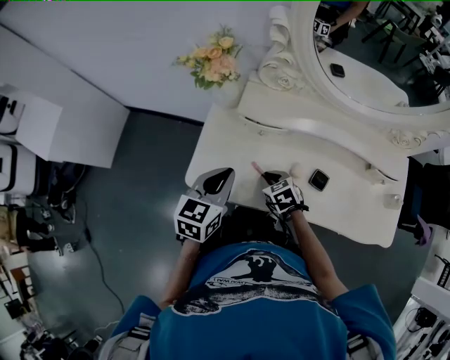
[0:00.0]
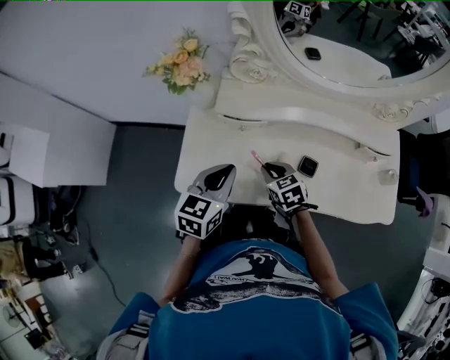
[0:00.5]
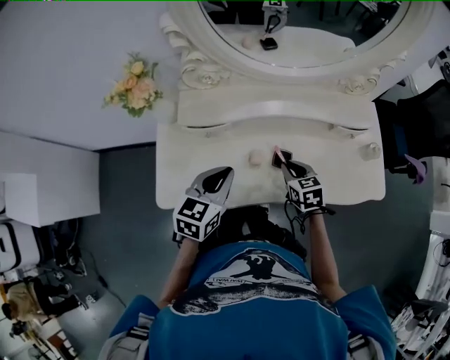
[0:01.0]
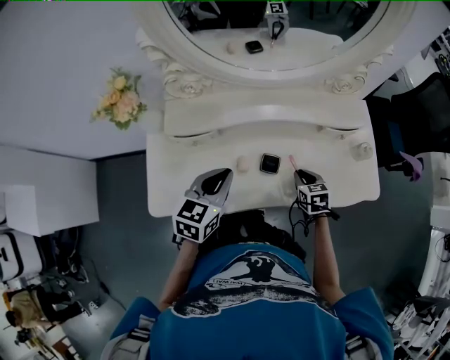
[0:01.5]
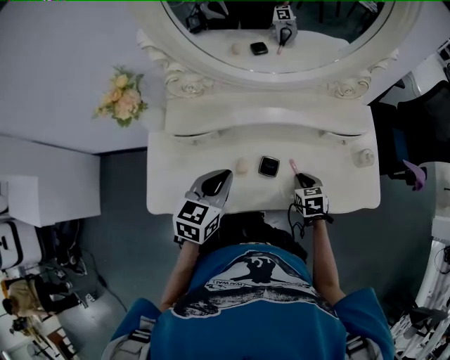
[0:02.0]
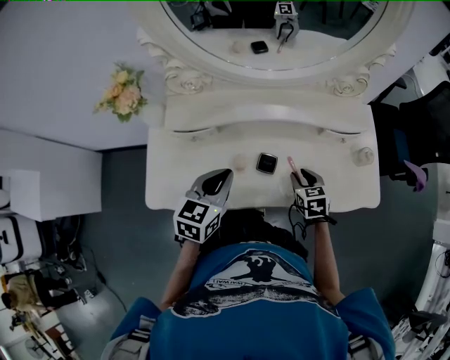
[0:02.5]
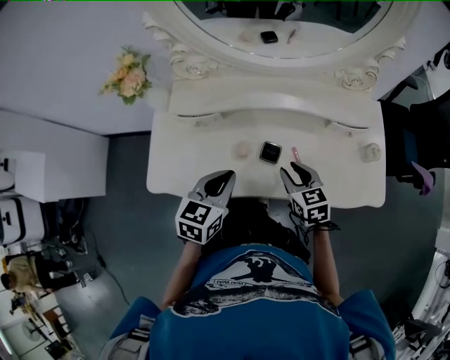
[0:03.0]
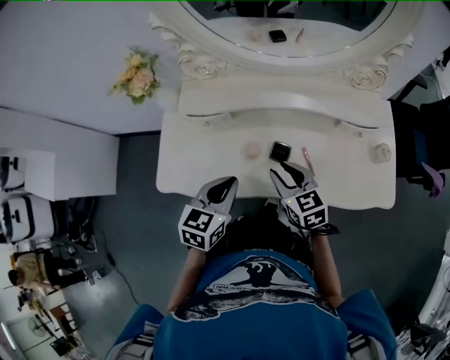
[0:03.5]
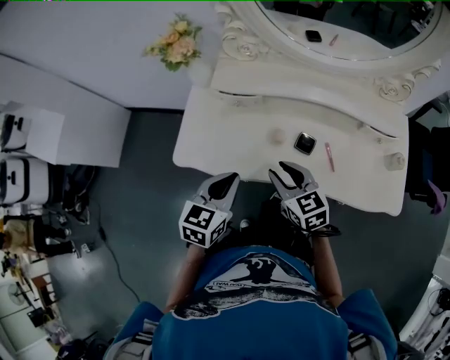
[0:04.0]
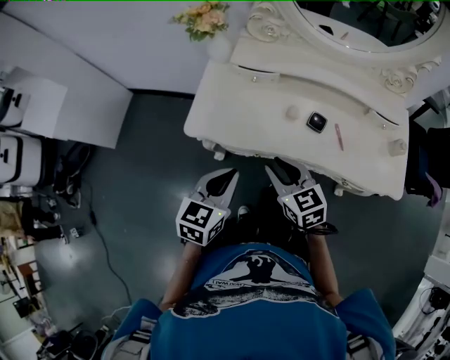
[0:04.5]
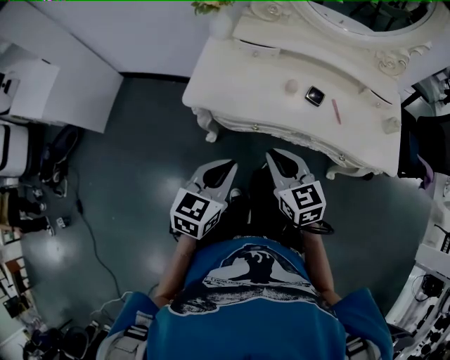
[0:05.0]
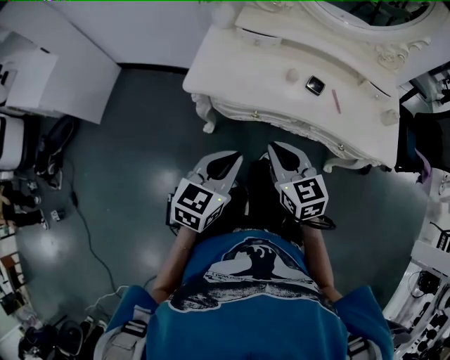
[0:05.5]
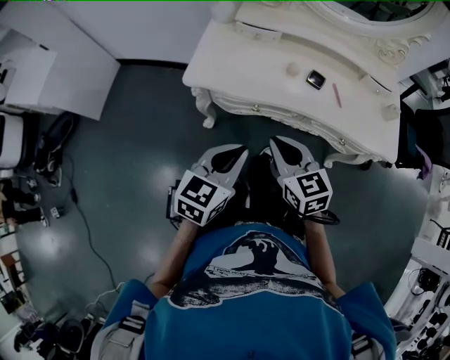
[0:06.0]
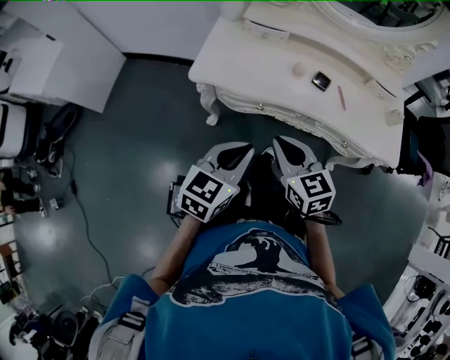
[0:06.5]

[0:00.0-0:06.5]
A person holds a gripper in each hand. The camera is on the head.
0:00.0 to 0:02.0: The left gripper ends up about 20 cm from where it was, while the right gripper ends up approximately 30 cm from where it was, and rotates some 40 degrees.
0:02.0 to 0:04.5: The left gripper moves some 25 cm. The right gripper changes place by roughly 35 cm, and swivels about 40 degrees.
0:04.5 to 0:06.5: Both grippers move backward, approximately 10 cm.

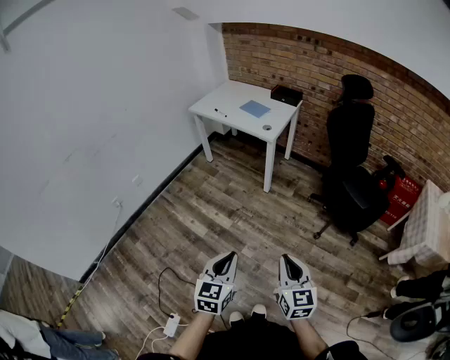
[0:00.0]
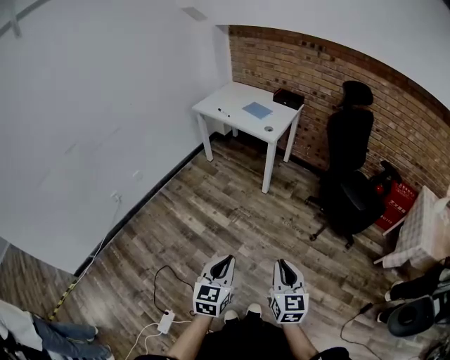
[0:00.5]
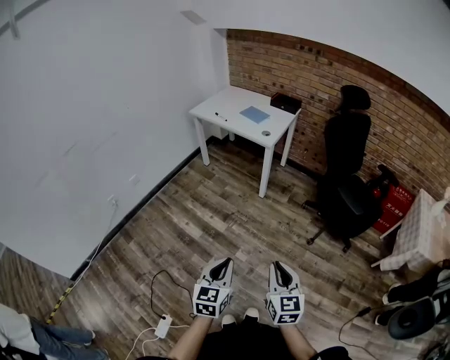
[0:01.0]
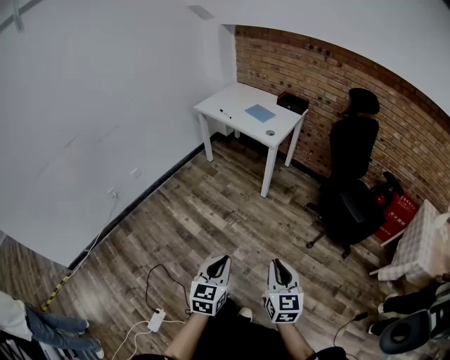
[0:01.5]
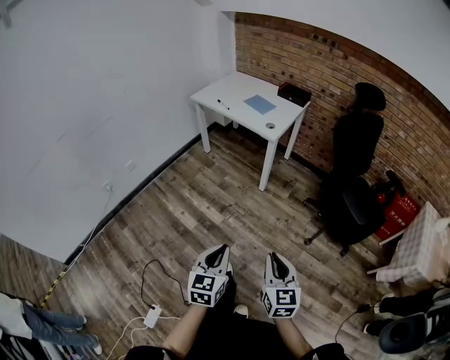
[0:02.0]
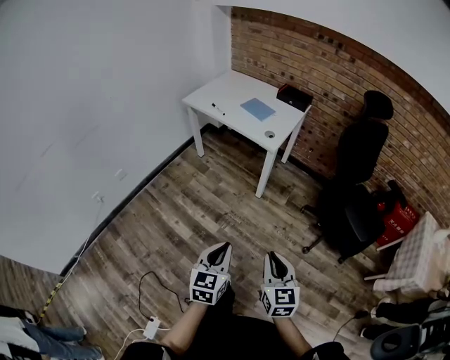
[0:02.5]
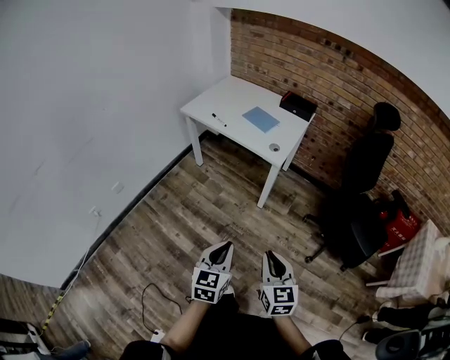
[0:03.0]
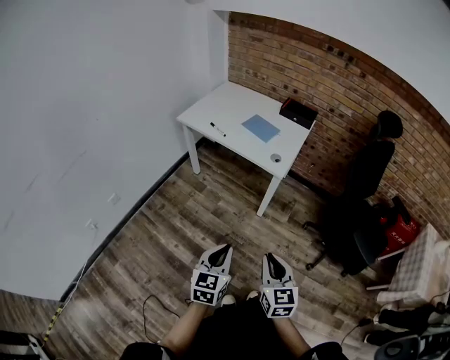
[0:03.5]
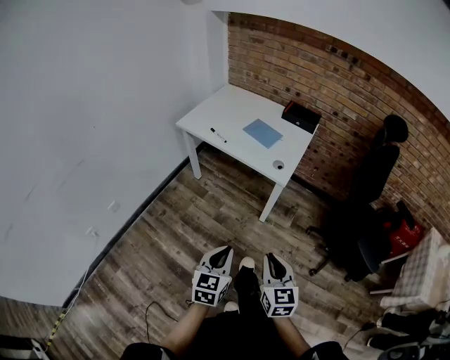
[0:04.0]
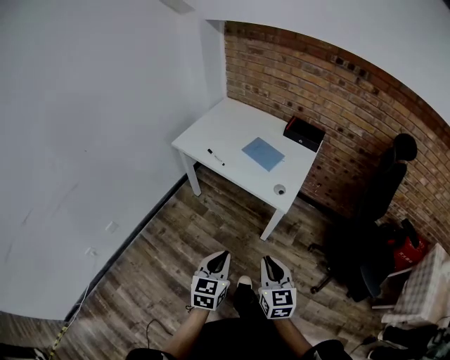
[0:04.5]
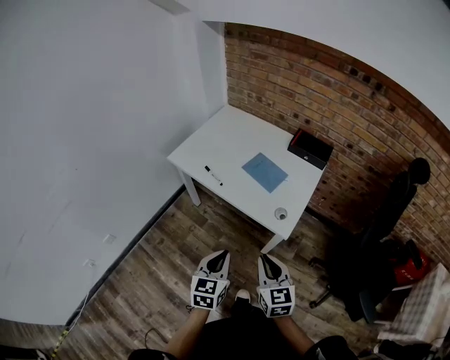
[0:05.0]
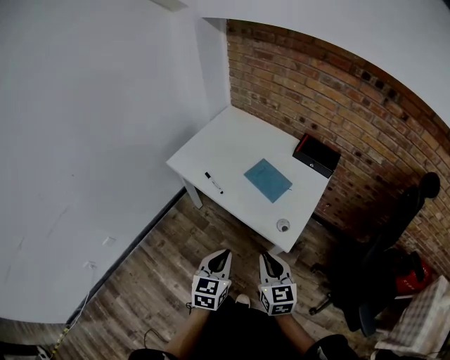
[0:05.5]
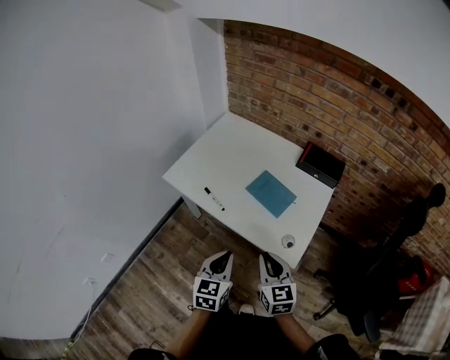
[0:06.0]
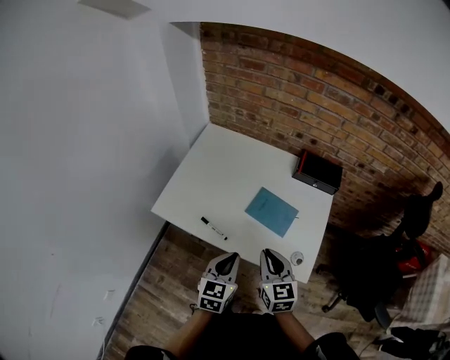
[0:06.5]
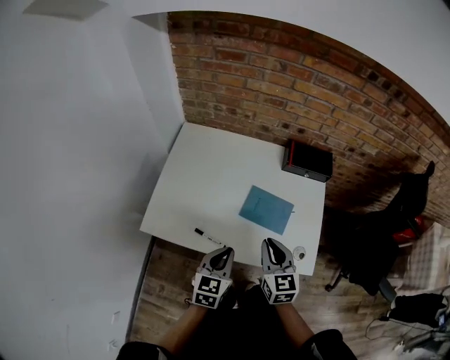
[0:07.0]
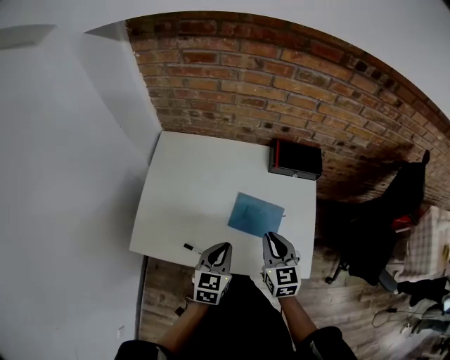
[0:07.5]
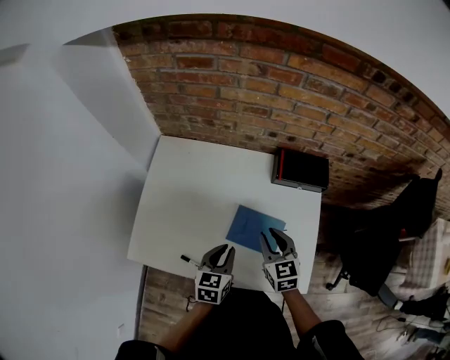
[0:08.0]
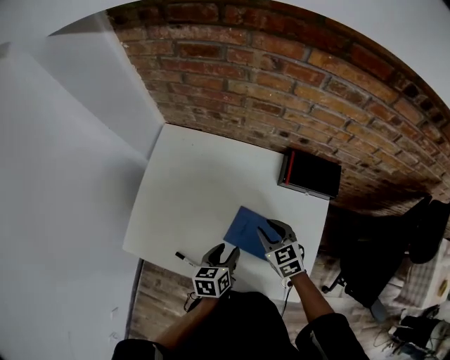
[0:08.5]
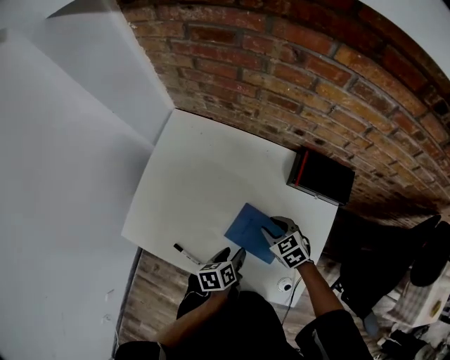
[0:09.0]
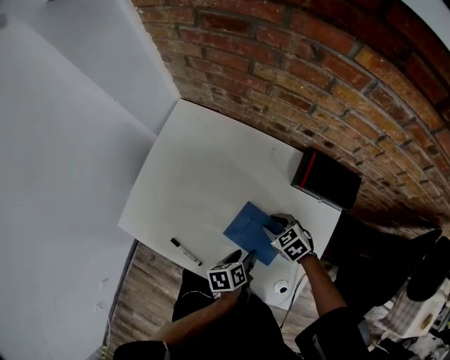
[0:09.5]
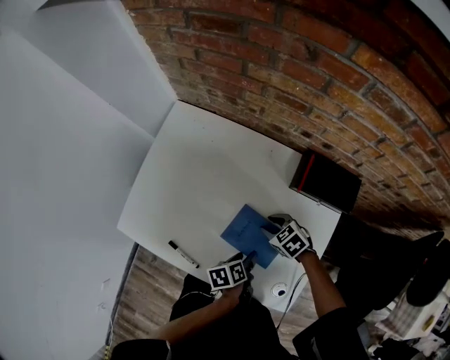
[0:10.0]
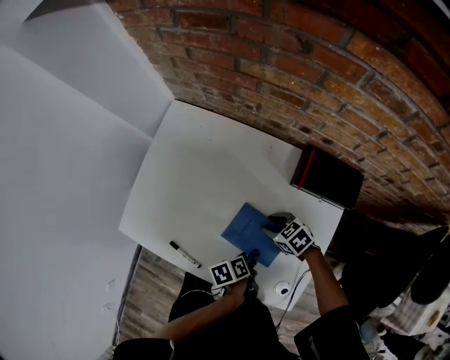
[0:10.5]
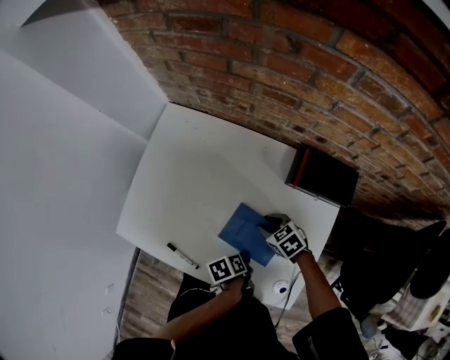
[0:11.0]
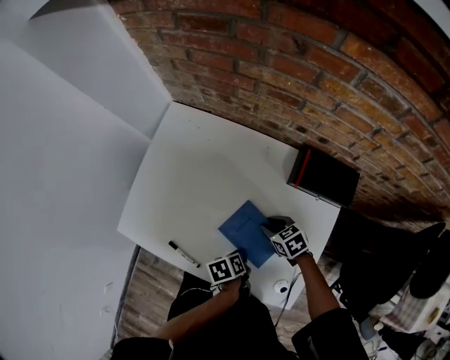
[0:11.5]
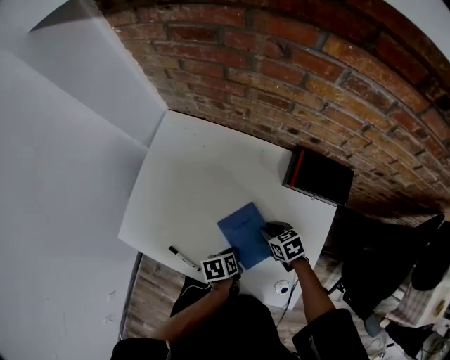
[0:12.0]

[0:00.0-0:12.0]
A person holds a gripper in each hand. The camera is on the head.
0:00.0 to 0:02.0: The two grippers go some 5 cm forward.
0:02.0 to 0:04.0: Both grippers travel together forward, about 35 cm.
0:04.0 to 0:06.0: Both grippers are carried forward, roughly 40 cm.
0:06.0 to 0:08.0: The left gripper ends up roughly 30 cm from where it was, and swivels approximately 30 degrees; the right gripper shifts by approximately 35 cm, and turns by approximately 20 degrees.
0:08.0 to 0:10.0: Both grippers travel together downward, roughly 15 cm. The left gripper twists about 60 degrees counterclockwise, seen from behind, and opens up, while the right gripper rotates about 50 degrees.
0:10.0 to 0:12.0: The left gripper moves approximately 5 cm, and closes up; the right gripper rotates some 20 degrees.

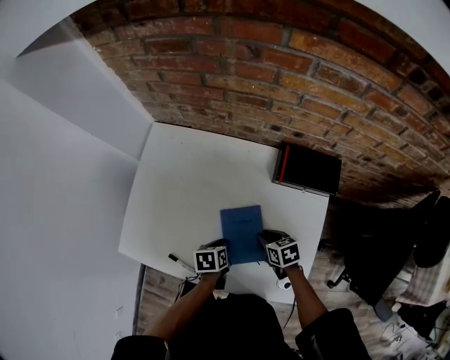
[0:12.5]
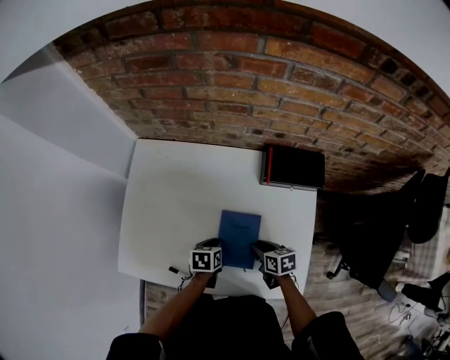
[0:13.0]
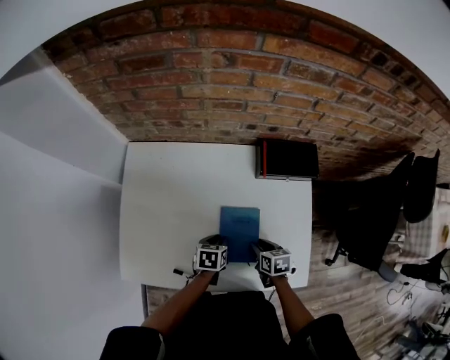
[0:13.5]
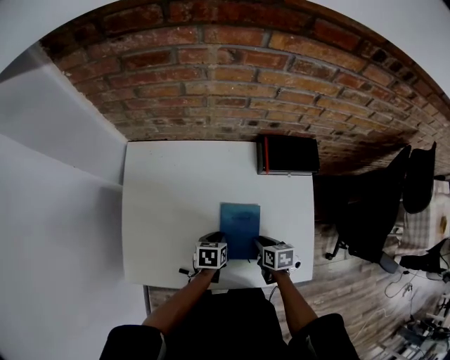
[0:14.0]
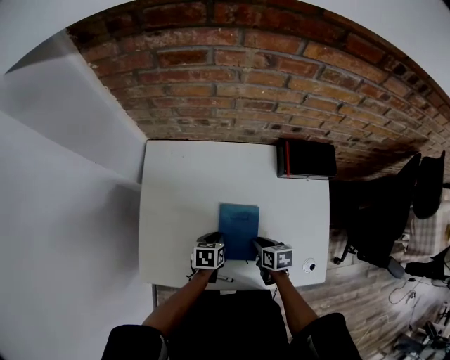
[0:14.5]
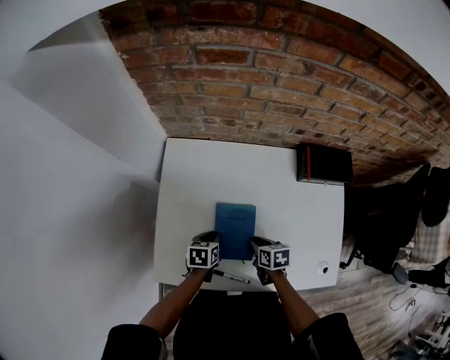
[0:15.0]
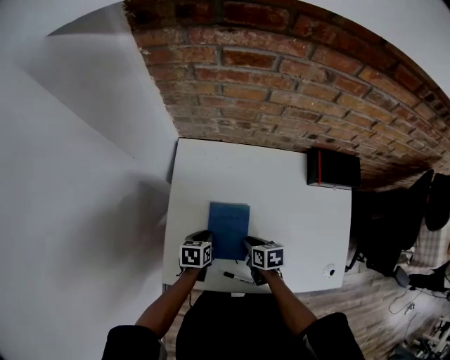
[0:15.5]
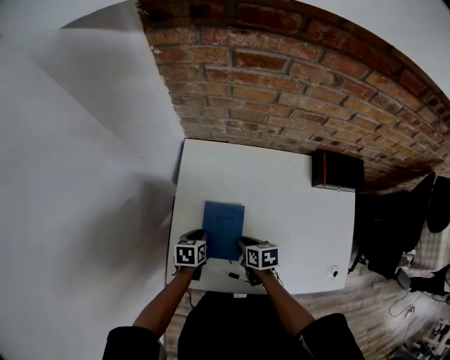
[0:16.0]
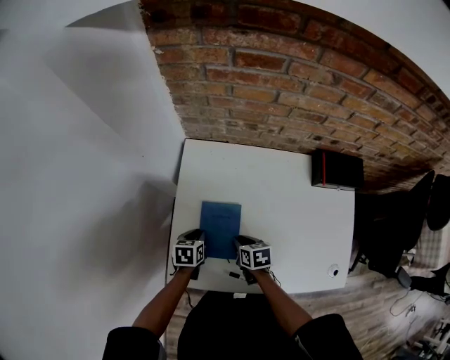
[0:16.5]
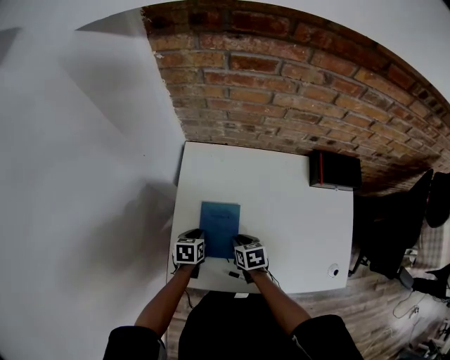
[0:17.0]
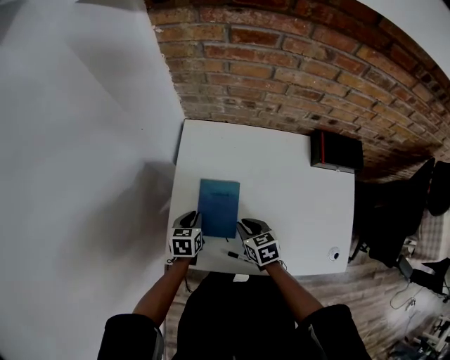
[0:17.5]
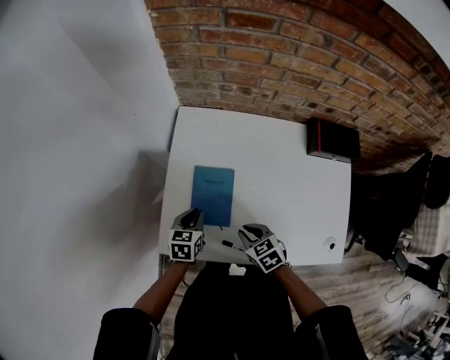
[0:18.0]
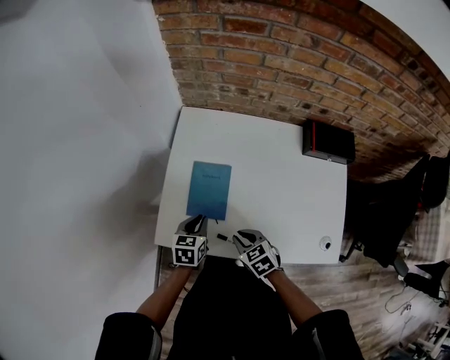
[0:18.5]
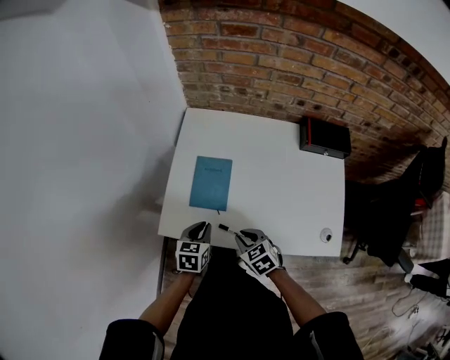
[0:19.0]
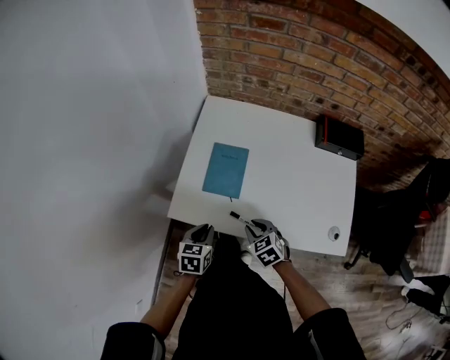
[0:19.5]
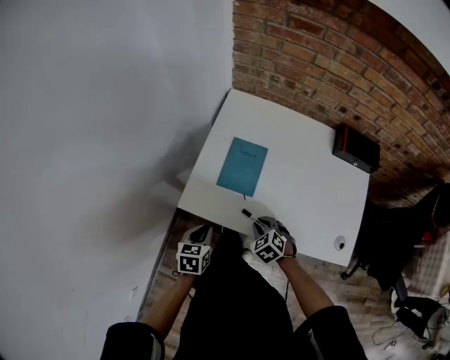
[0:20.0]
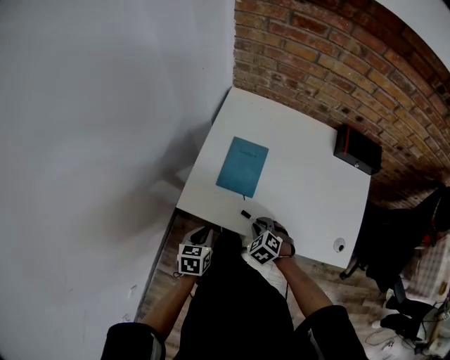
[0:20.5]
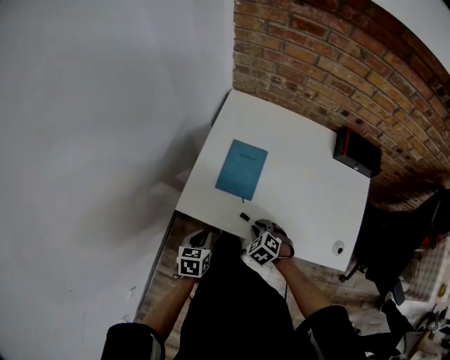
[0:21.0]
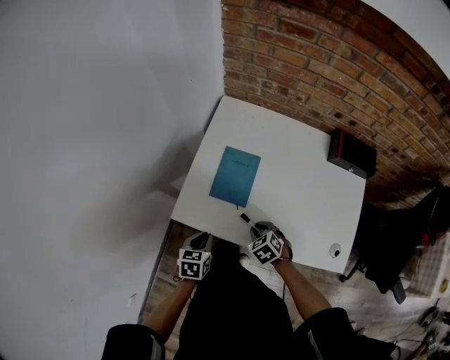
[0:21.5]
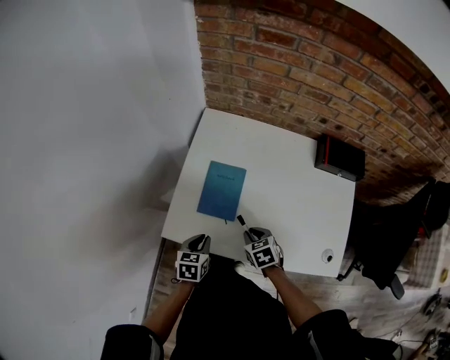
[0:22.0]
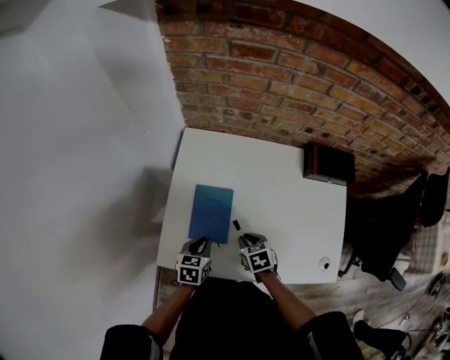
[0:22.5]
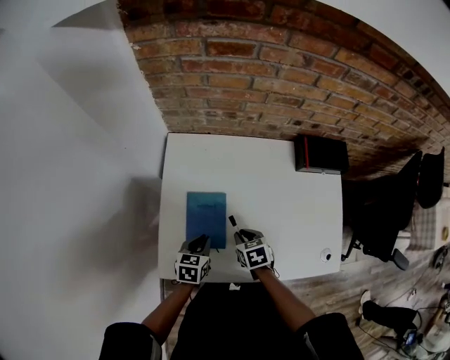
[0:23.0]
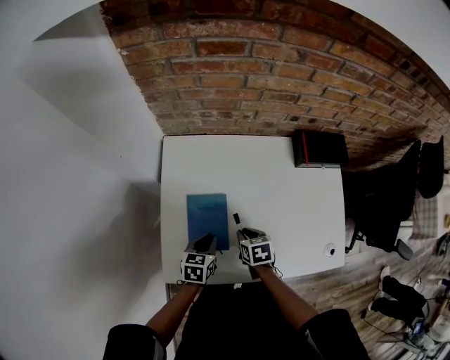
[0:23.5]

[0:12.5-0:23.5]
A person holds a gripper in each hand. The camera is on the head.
0:12.5 to 0:14.5: The two grippers go approximately 10 cm to the left. The right gripper changes its angle by about 30 degrees. Meanwhile the left gripper rotates some 20 degrees.
0:14.5 to 0:16.0: The two grippers go some 20 cm to the left.
0:16.0 to 0:18.0: The right gripper travels backward by about 10 cm, and swivels some 40 degrees. Meanwhile the left gripper goes some 5 cm backward.
0:18.0 to 0:20.0: The left gripper shifts about 20 cm backward; the right gripper travels backward by approximately 10 cm, and rotates some 30 degrees.
0:20.0 to 0:21.5: There are only small adjustments of the grippers.
0:21.5 to 0:23.5: The left gripper moves forward and to the right, approximately 20 cm, and swivels about 20 degrees; the right gripper shifts about 15 cm forward, and rolls clockwise, seen from behind, by roughly 50 degrees.
